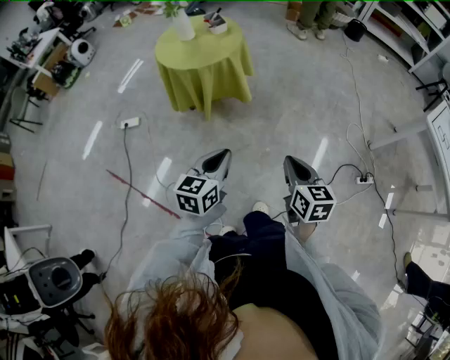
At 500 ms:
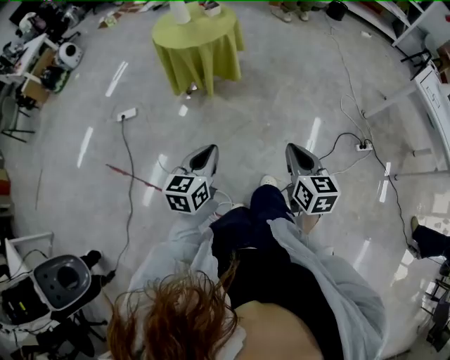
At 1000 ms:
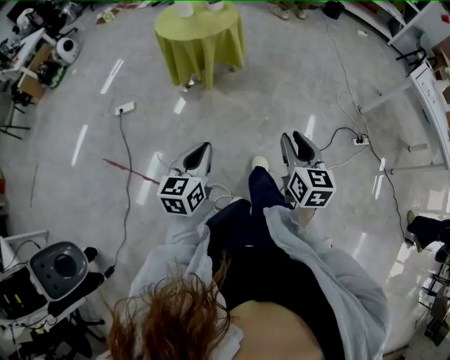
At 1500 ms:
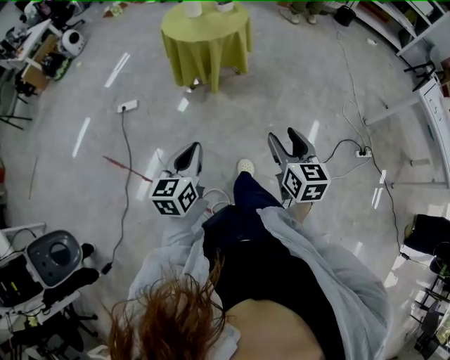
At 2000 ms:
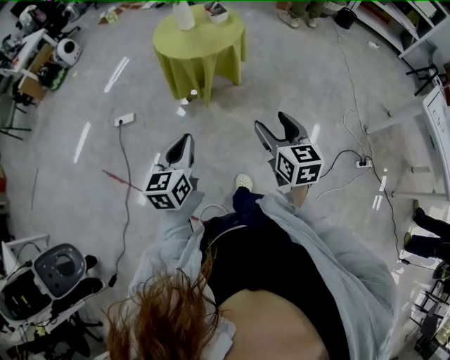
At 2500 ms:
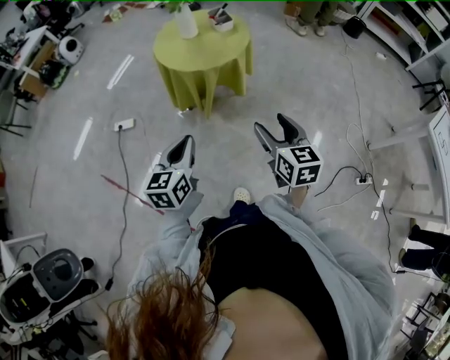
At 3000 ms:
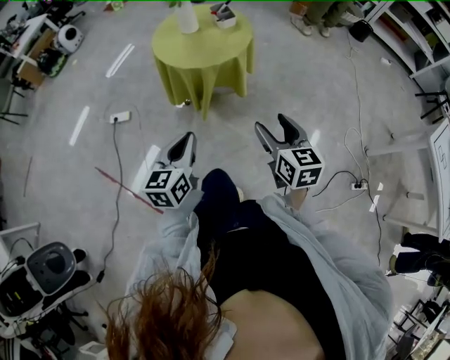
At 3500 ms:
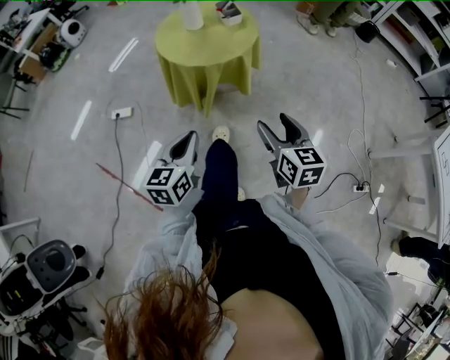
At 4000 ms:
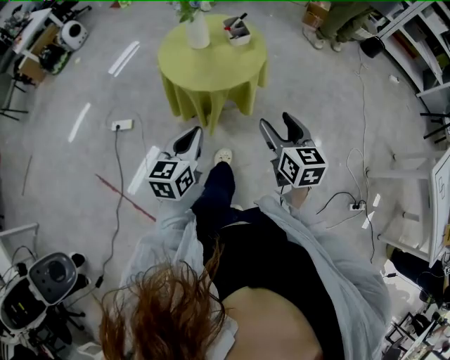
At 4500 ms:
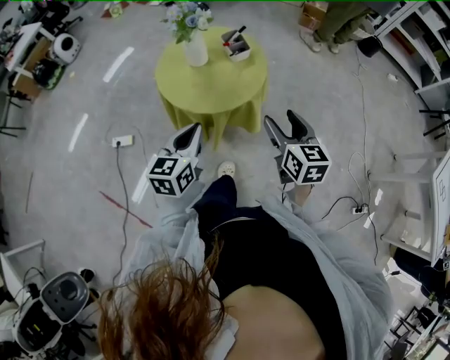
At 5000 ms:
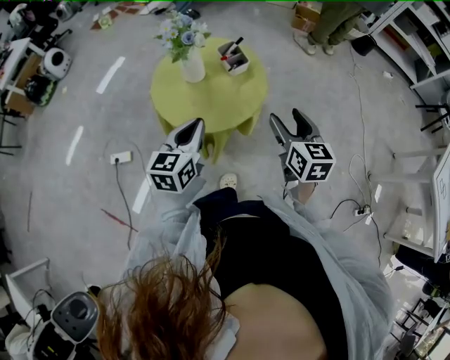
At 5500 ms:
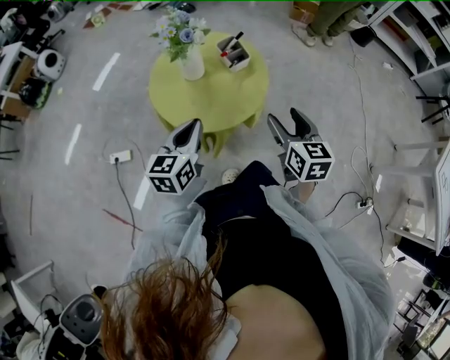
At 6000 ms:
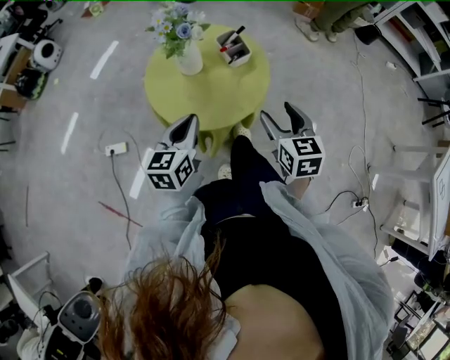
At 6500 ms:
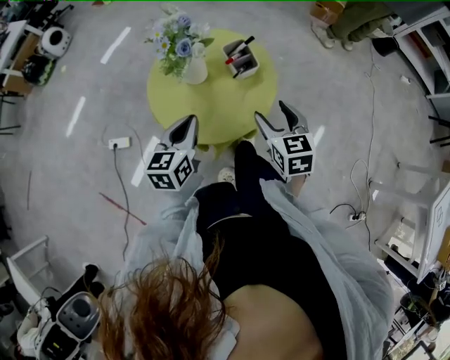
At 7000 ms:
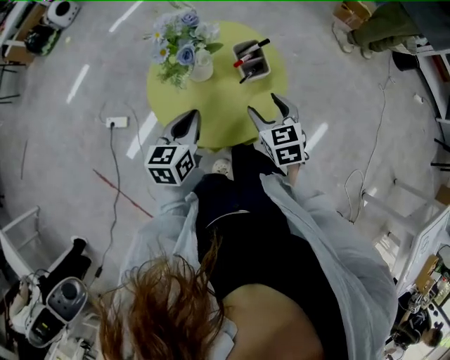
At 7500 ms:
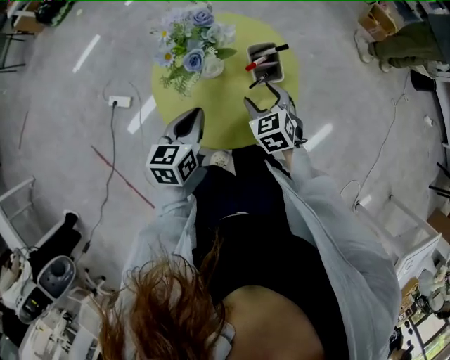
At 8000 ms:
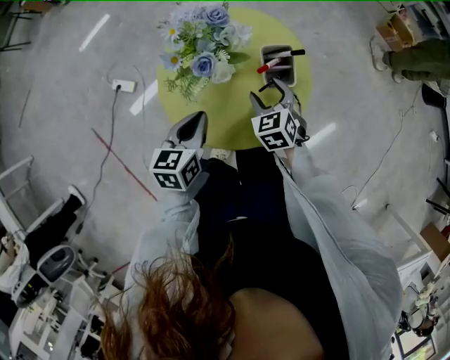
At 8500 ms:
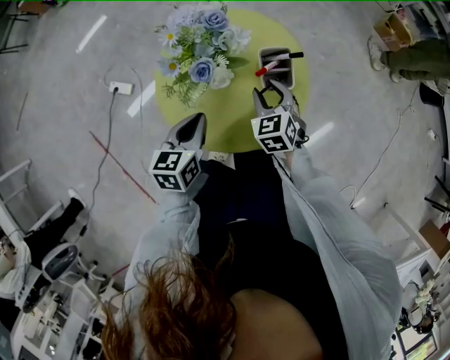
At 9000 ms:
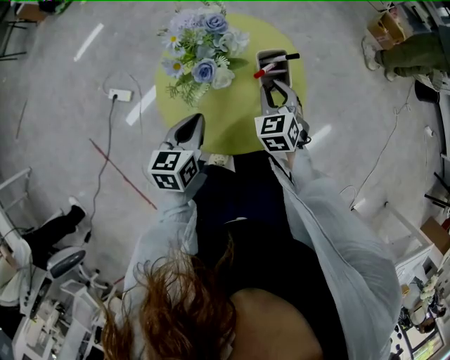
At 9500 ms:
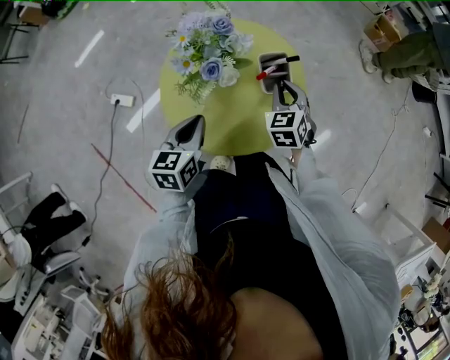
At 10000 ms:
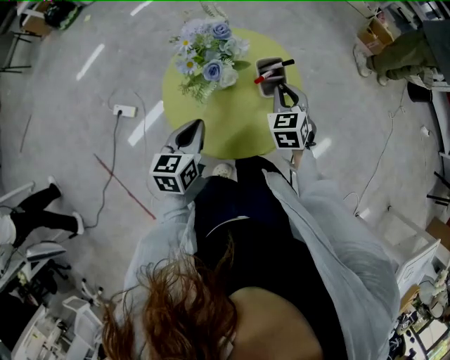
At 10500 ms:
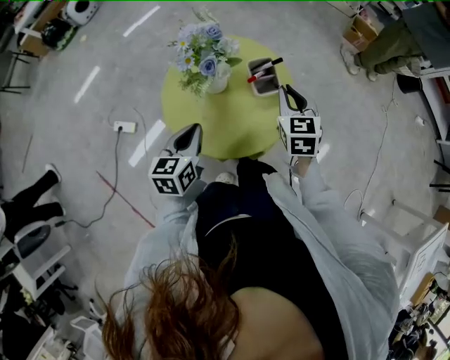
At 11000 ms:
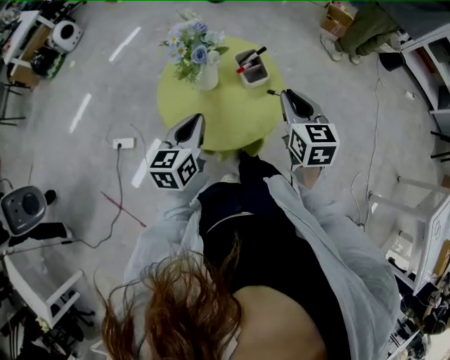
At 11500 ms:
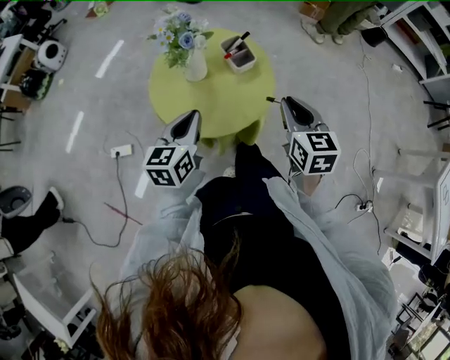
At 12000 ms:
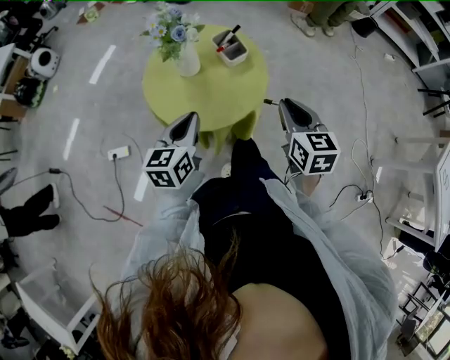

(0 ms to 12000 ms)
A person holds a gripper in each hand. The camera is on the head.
0 ms - 2000 ms: The two grippers go approximately 15 cm to the left. The right gripper reaches some 15 cm backward, then returns, and opens its fingers.
2000 ms - 4000 ms: The two grippers go about 25 cm forward.
4000 ms - 6000 ms: Both grippers travel together forward, roughly 20 cm.
6000 ms - 8000 ms: The left gripper moves forward and downward, approximately 10 cm, and changes its angle by approximately 30 degrees. The right gripper goes some 25 cm forward and downward, and swivels some 40 degrees.
8000 ms - 10000 ms: The right gripper shifts roughly 10 cm upward and to the right, and closes.
10000 ms - 12000 ms: The left gripper is displaced backward and upward by some 10 cm, and changes its angle by about 20 degrees, while the right gripper is displaced backward and upward by about 25 cm, and swivels approximately 40 degrees.

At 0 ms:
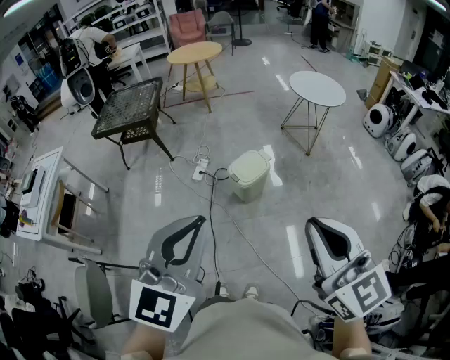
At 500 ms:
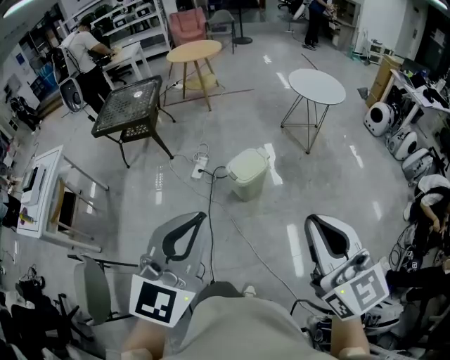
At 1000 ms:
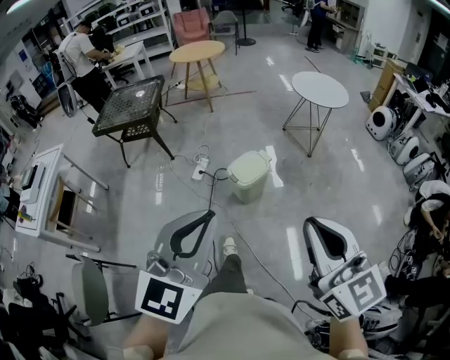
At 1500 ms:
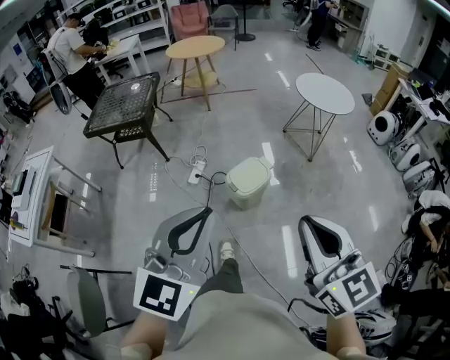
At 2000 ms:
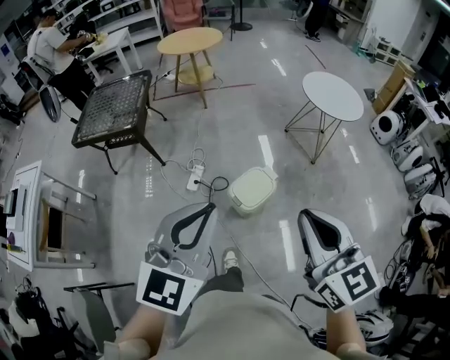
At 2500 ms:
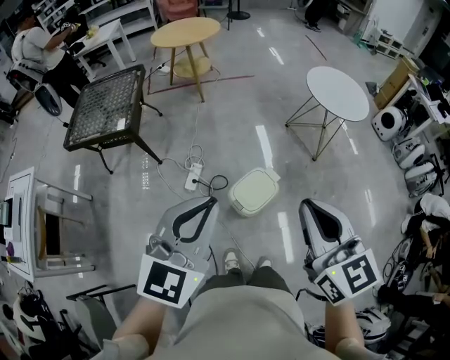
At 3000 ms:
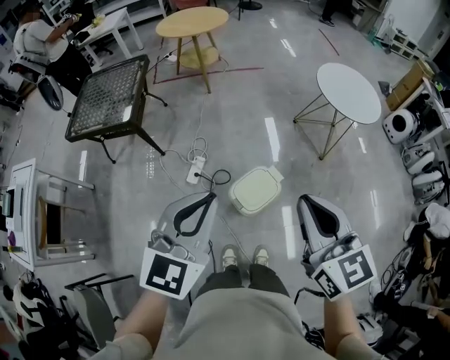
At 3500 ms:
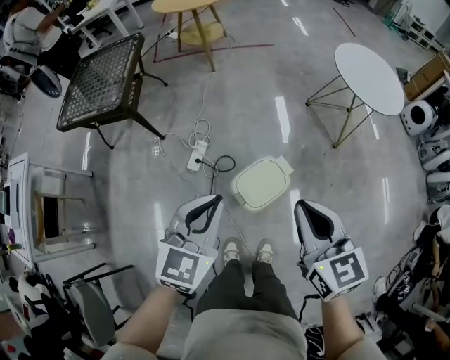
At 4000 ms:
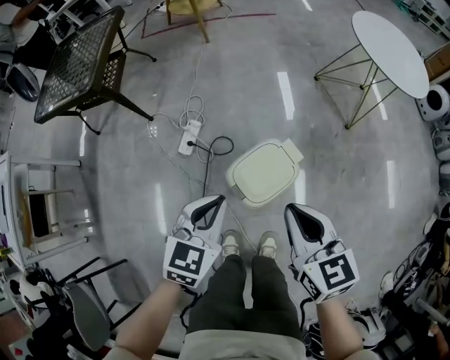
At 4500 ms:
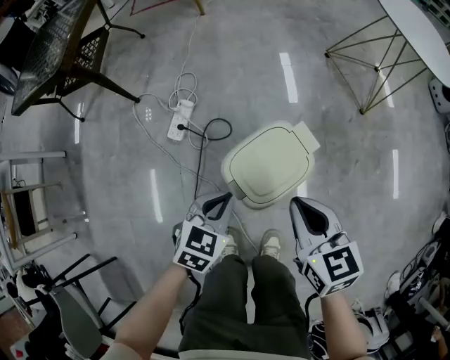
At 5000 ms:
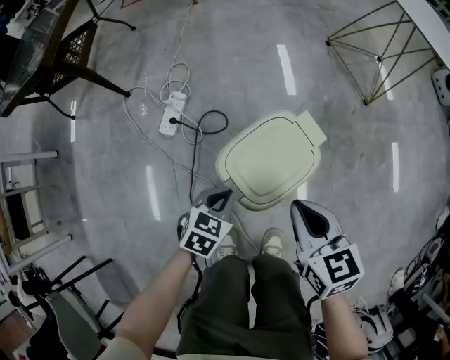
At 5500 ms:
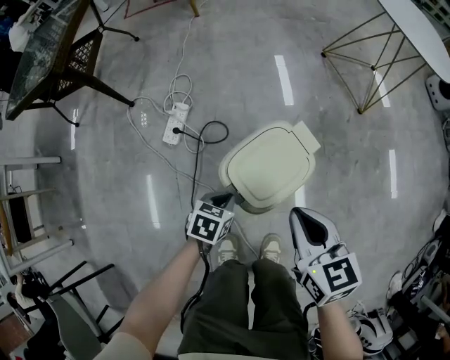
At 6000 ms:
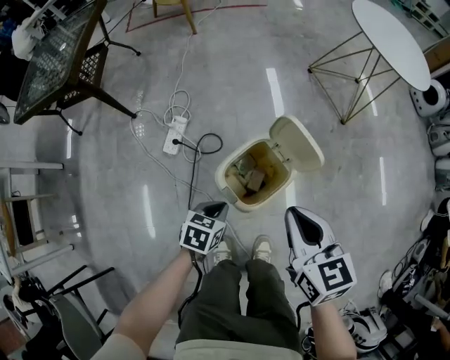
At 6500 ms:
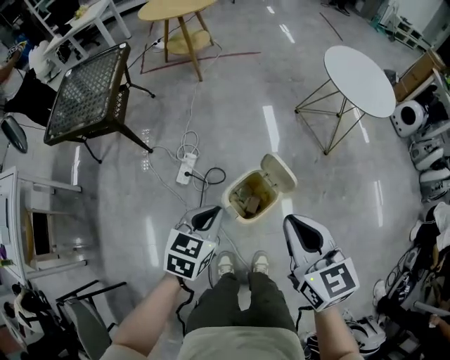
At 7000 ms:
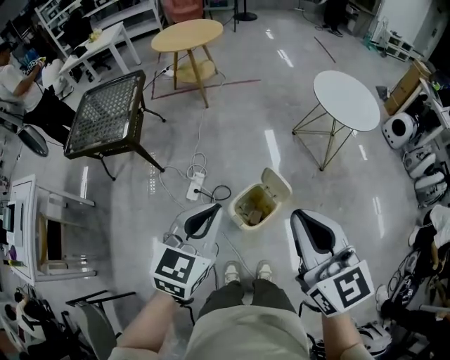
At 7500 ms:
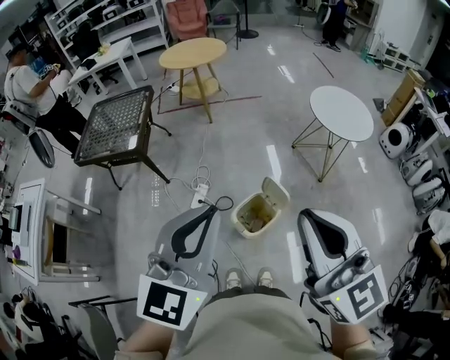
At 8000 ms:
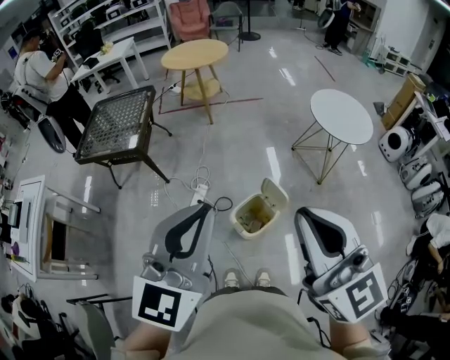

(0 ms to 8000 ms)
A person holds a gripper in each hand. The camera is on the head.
0 ms - 2000 ms: Both grippers move forward, roughly 30 cm.
2000 ms - 4000 ms: The grippers both shift downward and forward by some 50 cm. The left gripper rotates some 30 degrees. The right gripper changes its angle by approximately 20 degrees.
4000 ms - 6000 ms: The left gripper goes about 25 cm downward, and changes its angle by approximately 30 degrees; the right gripper shifts some 10 cm downward.
6000 ms - 8000 ms: The grippers both shift upward by approximately 70 cm. The left gripper angles its fingers upward, by roughly 50 degrees. The right gripper angles its fingers upward, by about 30 degrees.

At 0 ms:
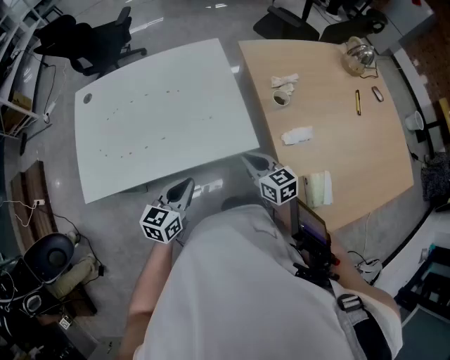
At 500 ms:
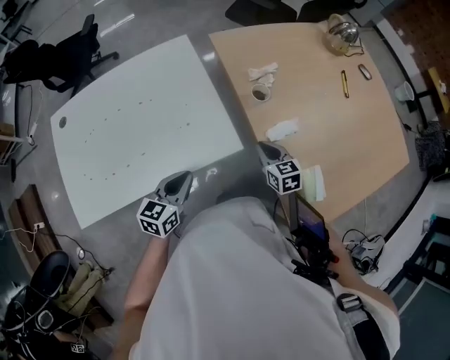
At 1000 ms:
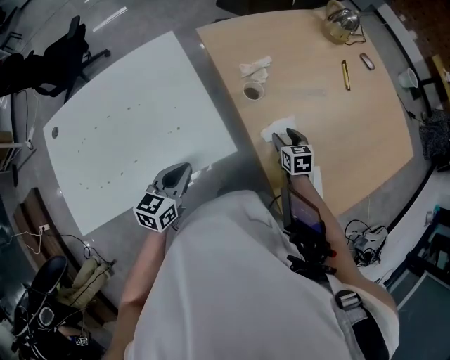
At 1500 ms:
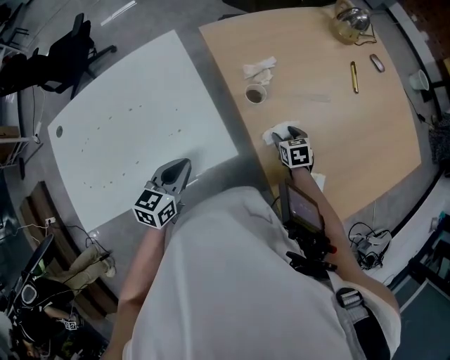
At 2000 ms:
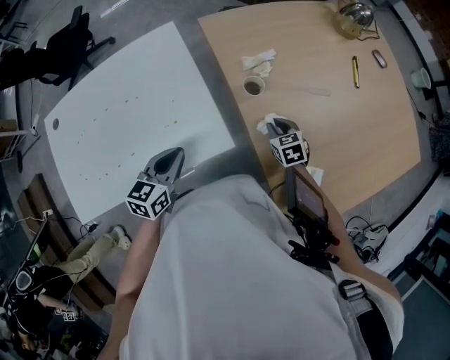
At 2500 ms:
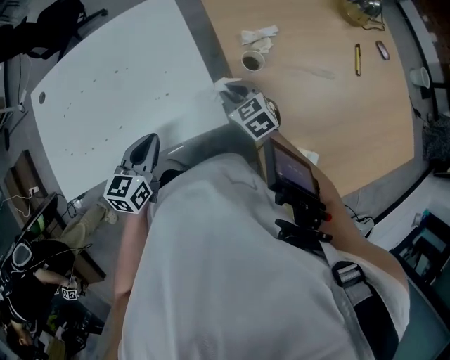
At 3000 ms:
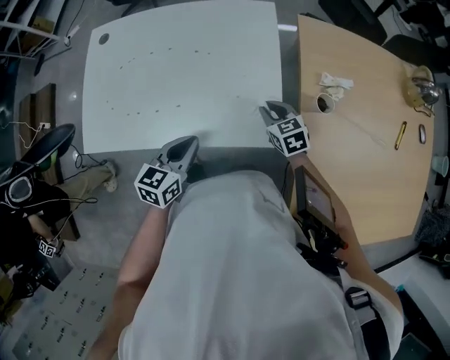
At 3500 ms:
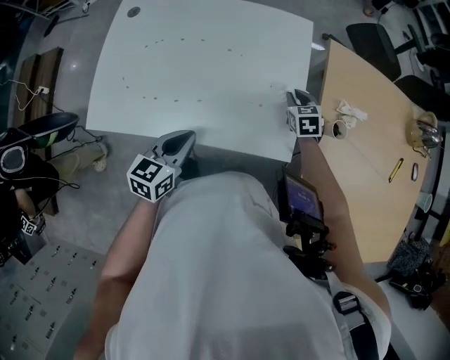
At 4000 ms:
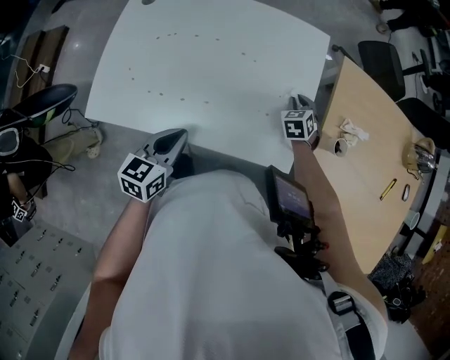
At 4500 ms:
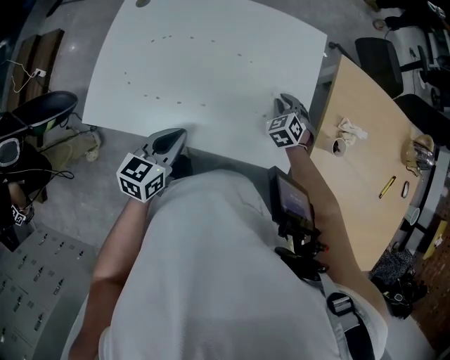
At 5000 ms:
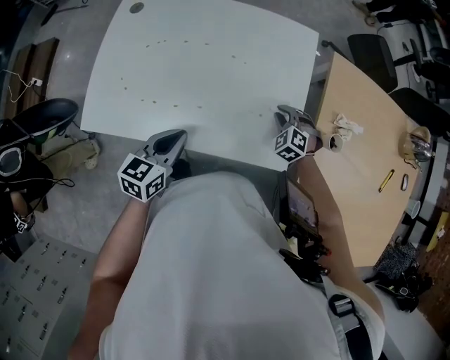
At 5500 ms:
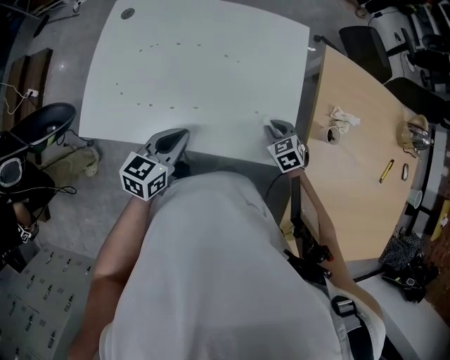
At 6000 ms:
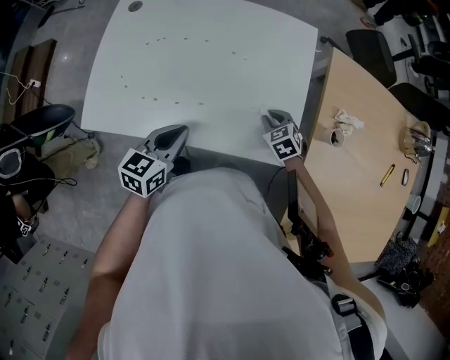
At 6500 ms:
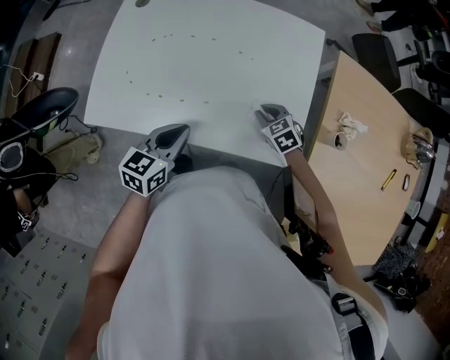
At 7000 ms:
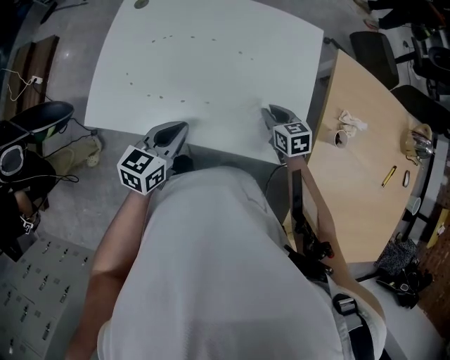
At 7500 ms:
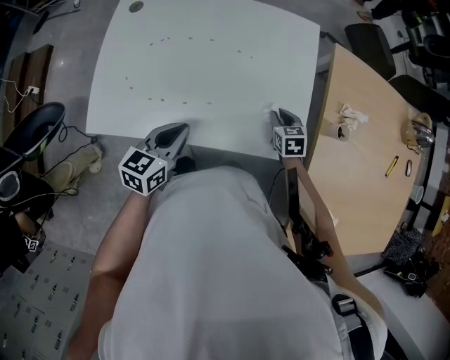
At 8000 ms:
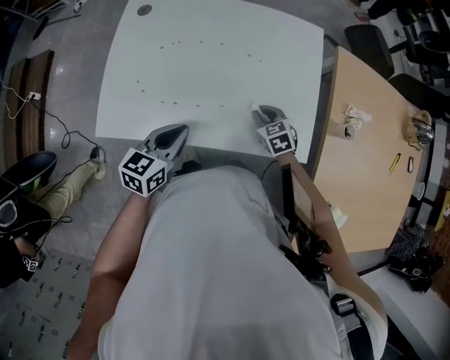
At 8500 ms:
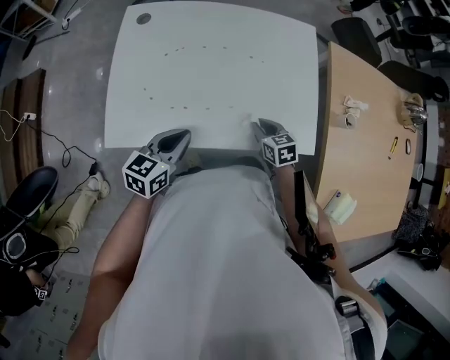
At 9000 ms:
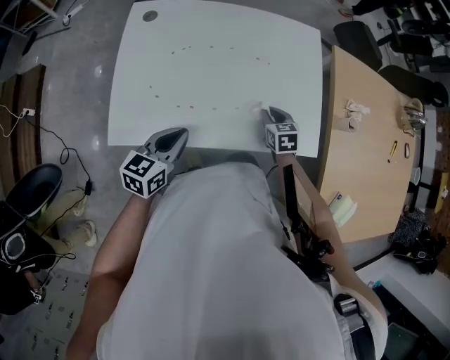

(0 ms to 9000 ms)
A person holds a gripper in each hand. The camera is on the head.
0 ms - 2000 ms: The right gripper goes some 25 cm to the right, forward and downward, rotates roughly 30 degrees, and opens, then closes once more, while the left gripper heads forward, covering roughly 15 cm.
2000 ms - 4500 ms: The left gripper moves approximately 20 cm, and changes its angle by approximately 30 degrees, while the right gripper shifts by about 35 cm, and rolls counterclockwise, seen from behind, by some 50 degrees.
4500 ms - 7000 ms: The right gripper travels backward by approximately 5 cm, and turns by approximately 40 degrees.
7000 ms - 9000 ms: The left gripper goes about 10 cm to the left, while the right gripper goes approximately 5 cm to the left.
